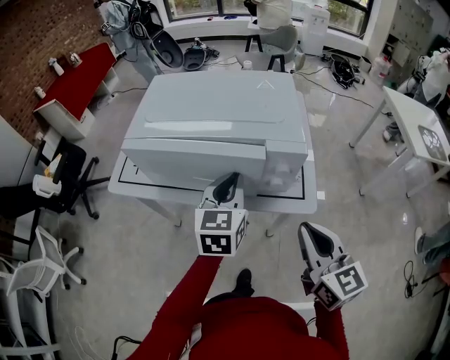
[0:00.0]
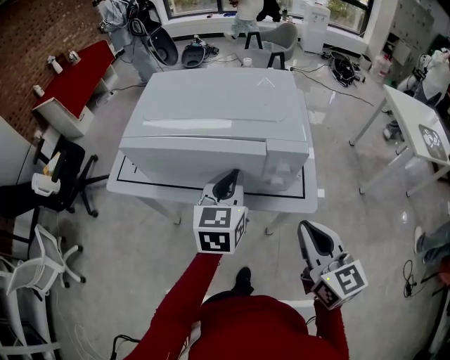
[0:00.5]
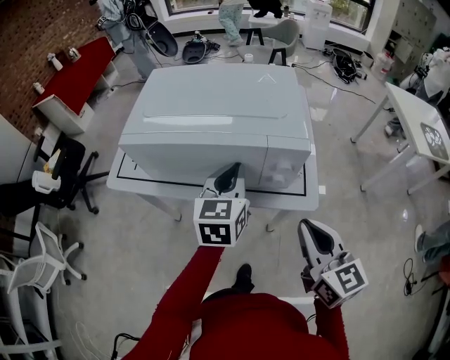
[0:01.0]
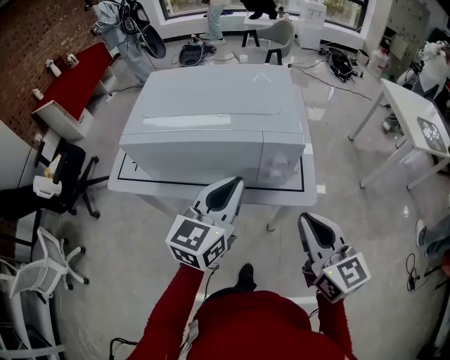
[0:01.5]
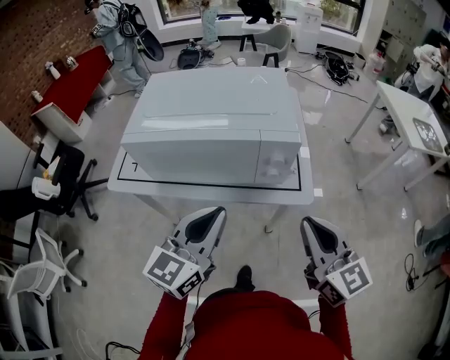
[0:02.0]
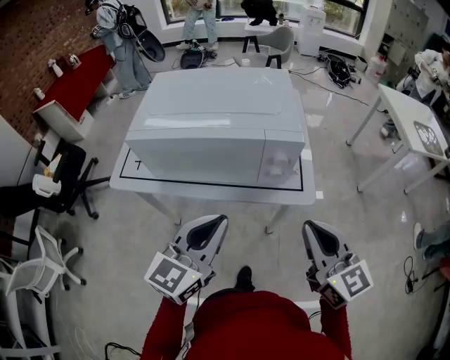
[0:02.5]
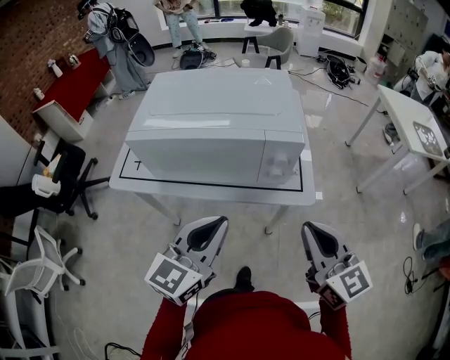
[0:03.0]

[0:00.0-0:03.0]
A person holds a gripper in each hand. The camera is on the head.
0:00.0 to 0:01.5: The left gripper ends up some 5 cm from where it was, and rotates roughly 20 degrees.
0:01.5 to 0:03.0: The left gripper travels backward by some 10 cm.

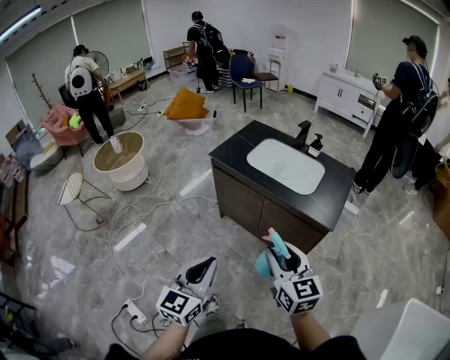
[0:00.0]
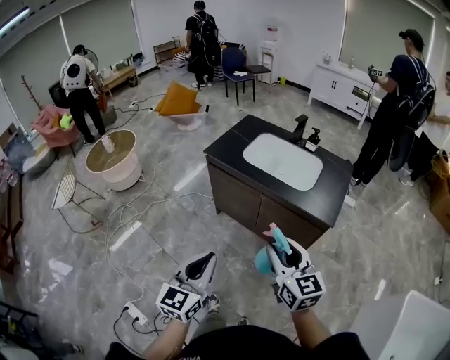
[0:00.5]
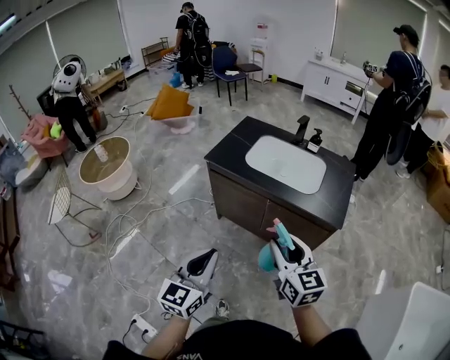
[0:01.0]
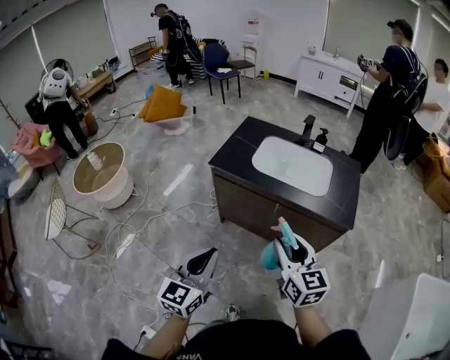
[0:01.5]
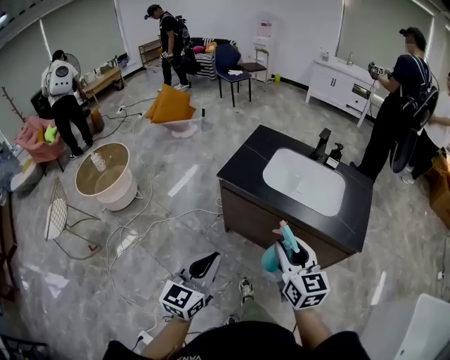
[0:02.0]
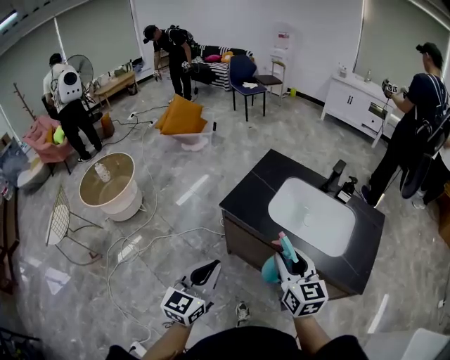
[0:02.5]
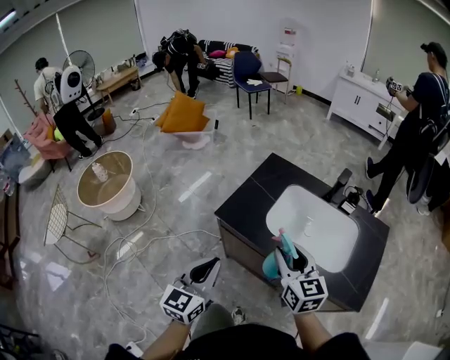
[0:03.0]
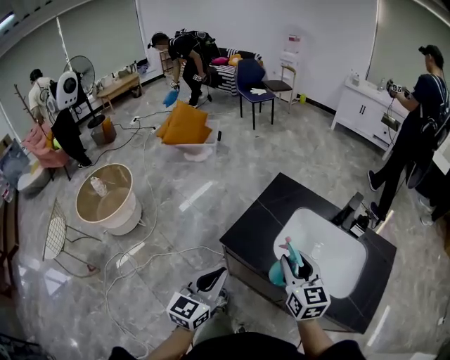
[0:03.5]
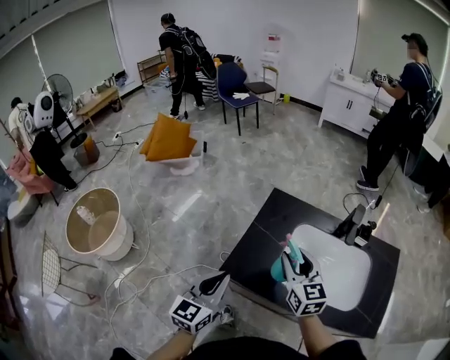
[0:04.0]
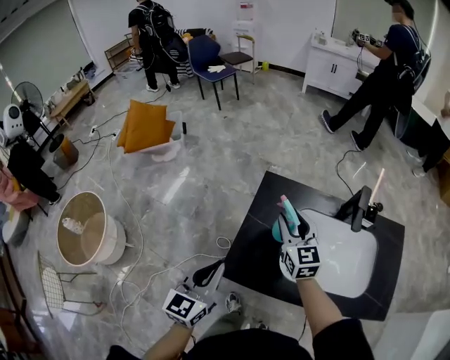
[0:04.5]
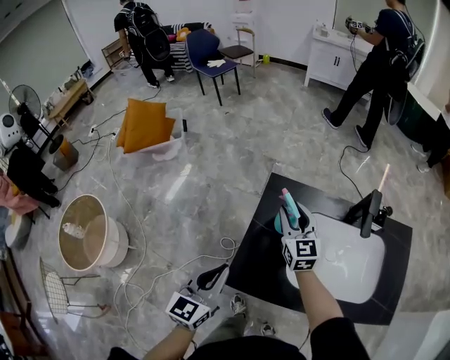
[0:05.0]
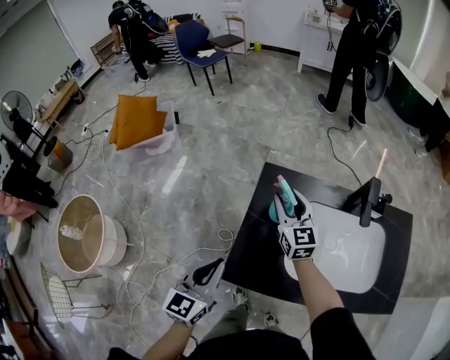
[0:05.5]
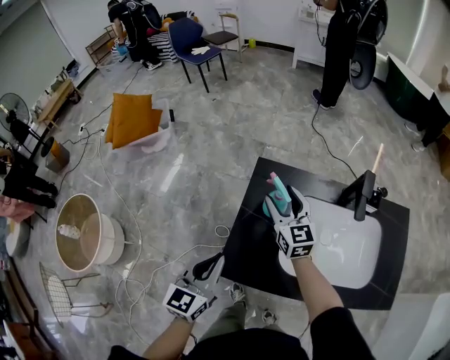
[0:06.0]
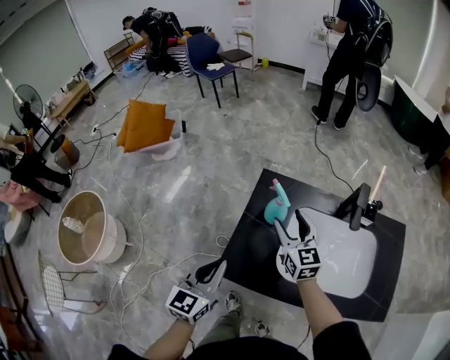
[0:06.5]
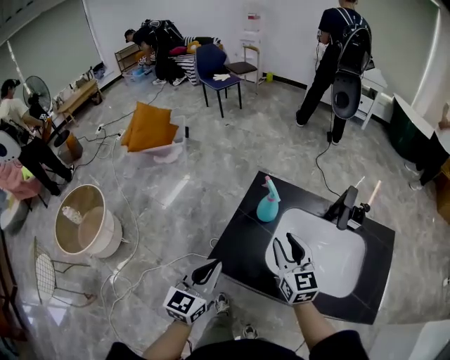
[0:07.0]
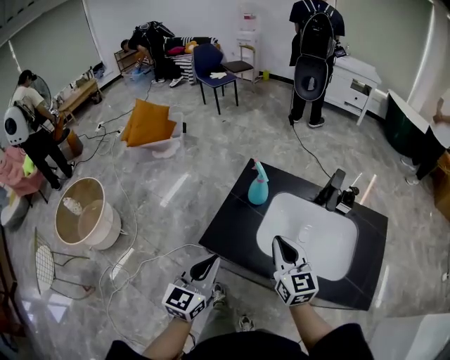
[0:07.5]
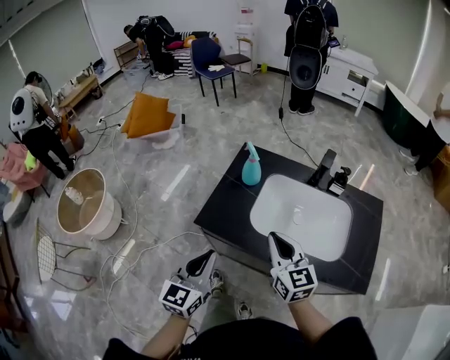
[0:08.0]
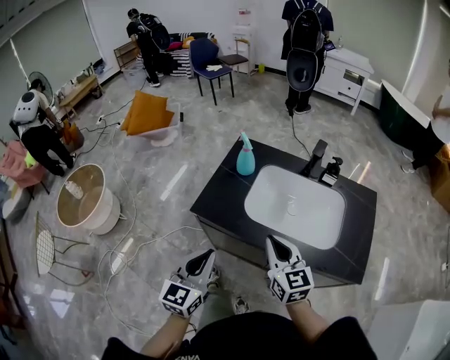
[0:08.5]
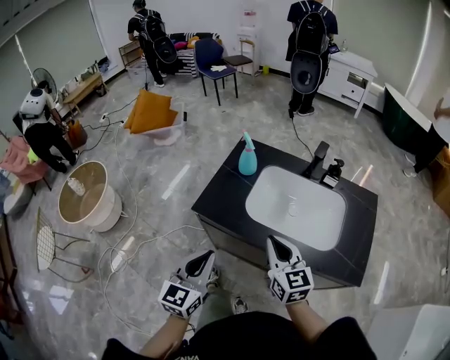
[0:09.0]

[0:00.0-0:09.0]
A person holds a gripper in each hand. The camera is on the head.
0:00.0 to 0:02.0: The two grippers go approximately 25 cm forward and to the left.
0:02.0 to 0:04.5: Both grippers are carried forward, some 50 cm.
0:04.5 to 0:07.0: The right gripper is displaced backward by some 10 cm, and opens and closes again. The left gripper ends up some 5 cm from where it was.
0:07.0 to 0:09.0: The left gripper is displaced backward and to the right by about 20 cm. The right gripper is displaced backward by some 20 cm, and closes its fingers.

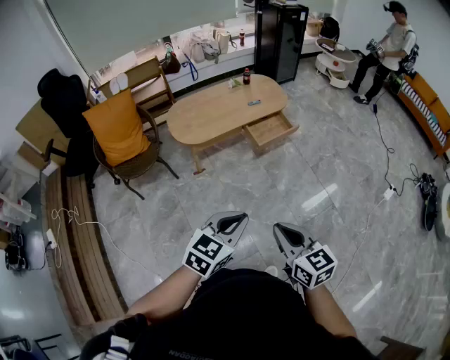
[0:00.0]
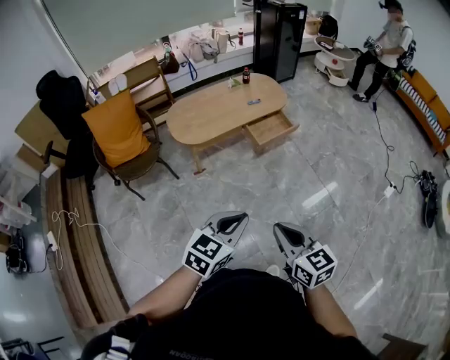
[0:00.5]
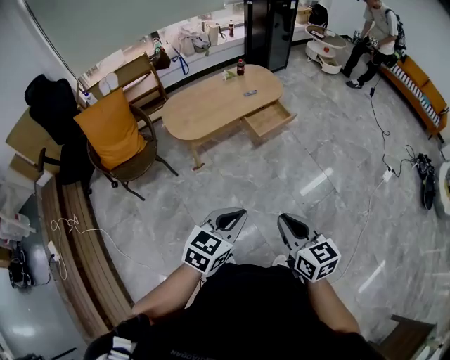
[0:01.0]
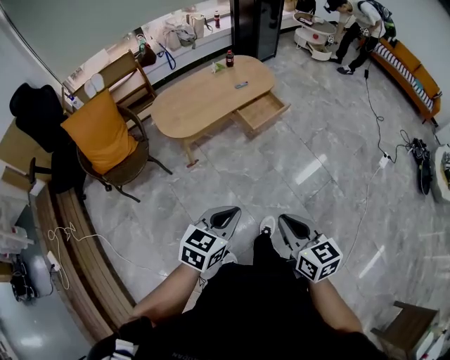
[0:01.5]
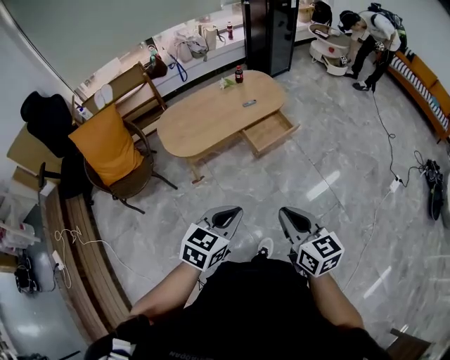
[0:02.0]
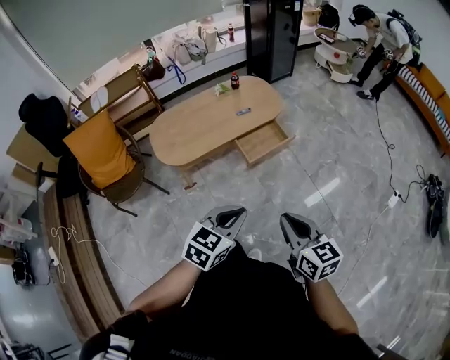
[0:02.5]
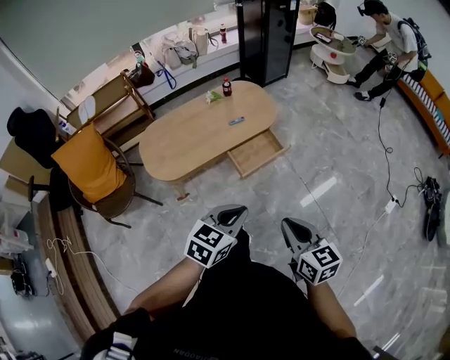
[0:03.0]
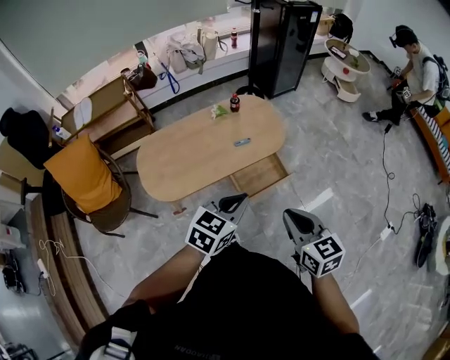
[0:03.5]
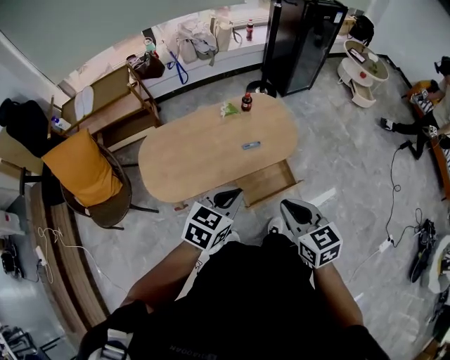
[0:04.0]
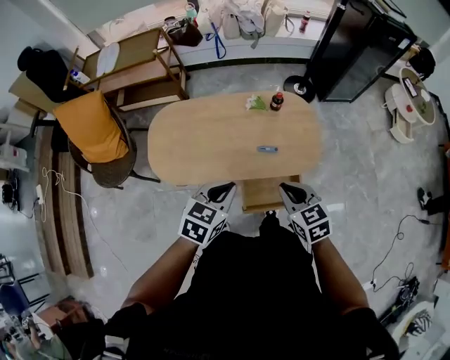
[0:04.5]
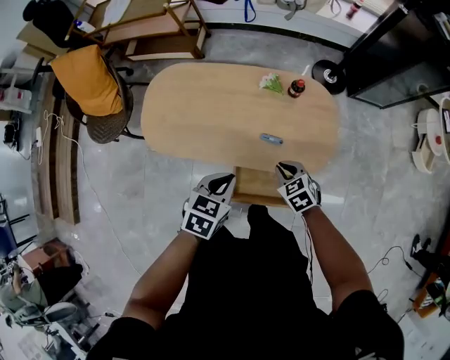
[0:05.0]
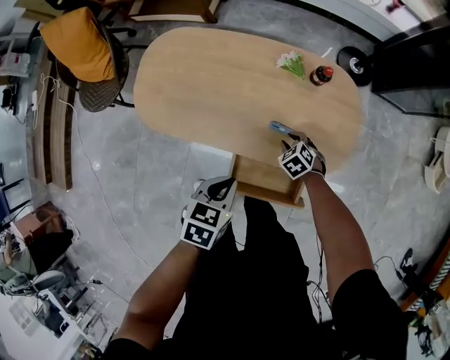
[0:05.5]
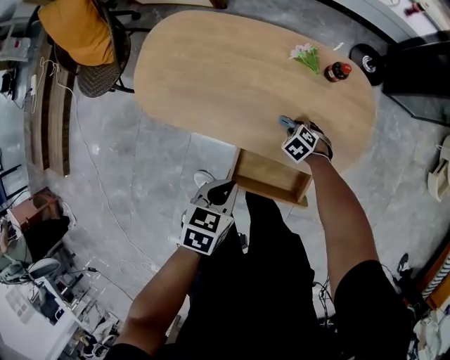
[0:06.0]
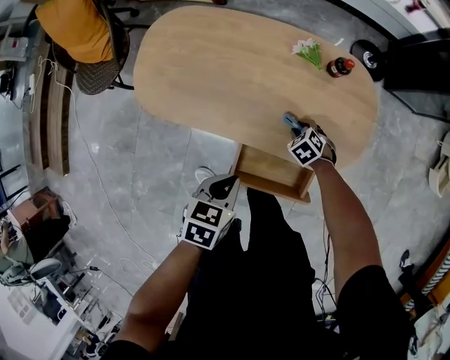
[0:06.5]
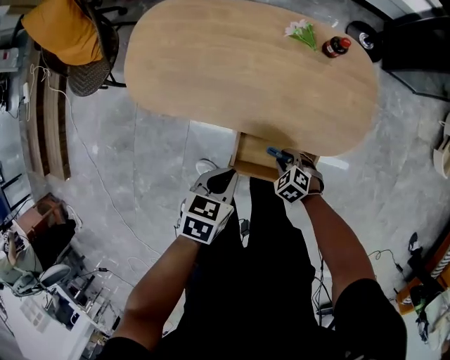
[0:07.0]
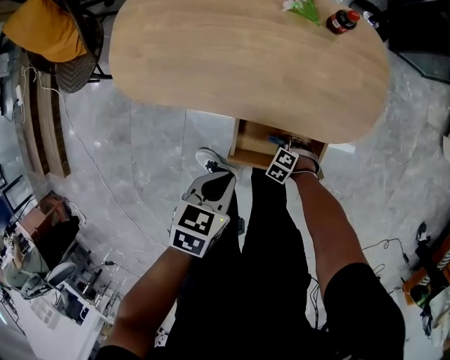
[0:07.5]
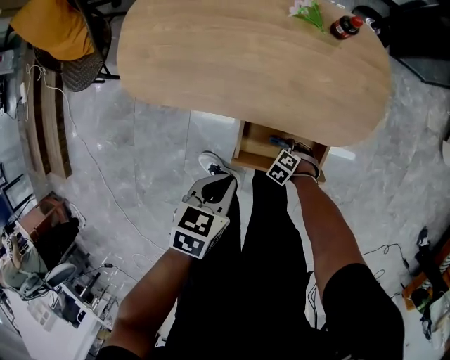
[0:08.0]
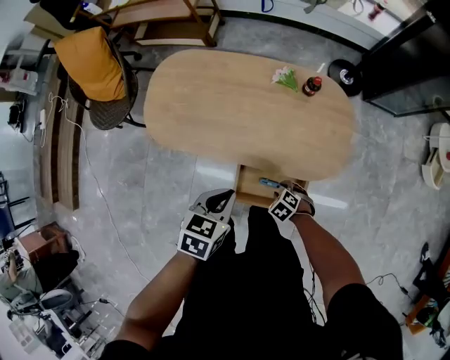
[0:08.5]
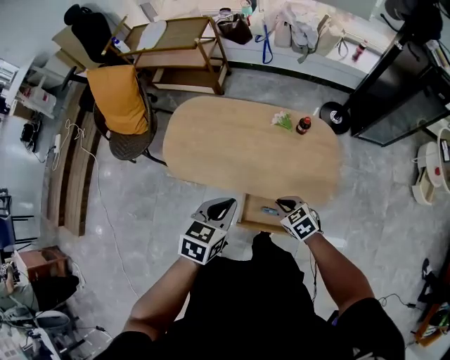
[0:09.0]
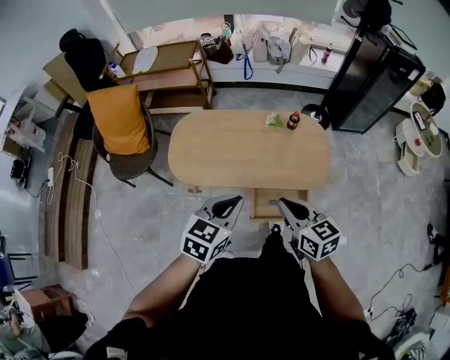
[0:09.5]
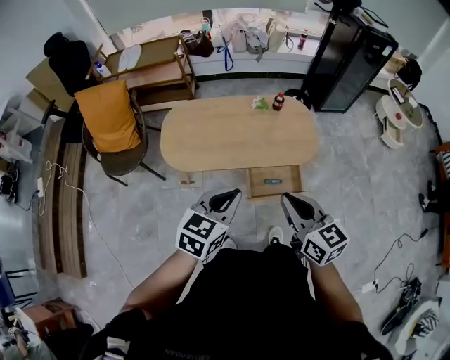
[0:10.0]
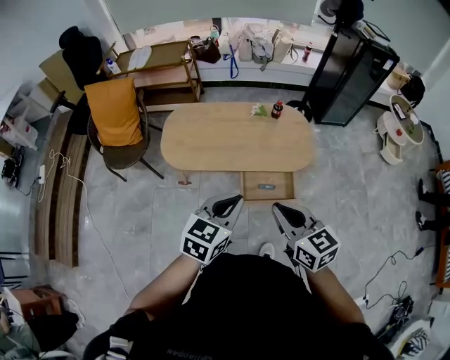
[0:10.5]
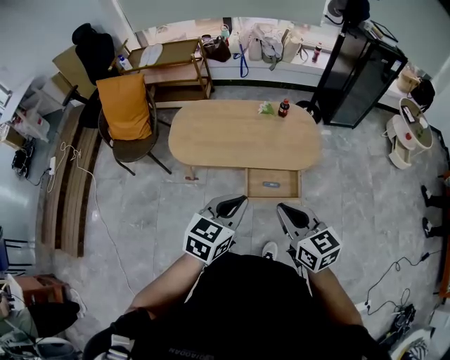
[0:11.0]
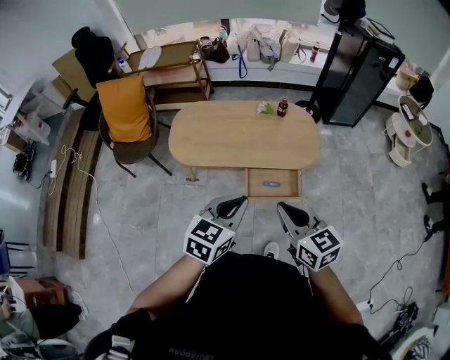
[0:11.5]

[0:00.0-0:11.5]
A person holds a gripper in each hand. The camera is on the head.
0:00.0 to 0:02.0: The two grippers go approximately 15 cm forward.
0:02.0 to 0:04.0: The two grippers travel together, forward, roughly 50 cm.
0:04.0 to 0:06.0: The right gripper shifts about 50 cm downward, points its fingers roughly 50 degrees further downward, and opens its fingers. The left gripper shifts about 25 cm downward, and rotates roughly 60 degrees.
0:06.0 to 0:07.5: The right gripper shifts by about 25 cm. Meanwhile the left gripper shifts by about 5 cm.
0:07.5 to 0:09.5: The right gripper moves upward, approximately 60 cm, tilts its fingers roughly 60 degrees upward, and closes its fingers. The left gripper shifts roughly 30 cm upward, and changes its angle by about 40 degrees.
0:09.5 to 0:11.5: Both grippers move backward, roughly 20 cm.

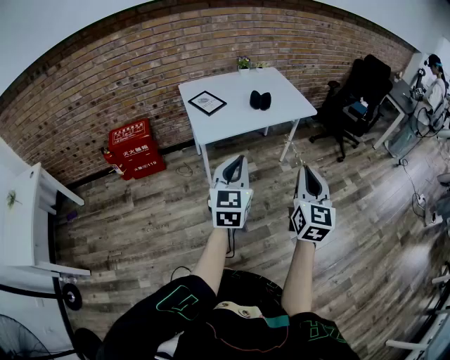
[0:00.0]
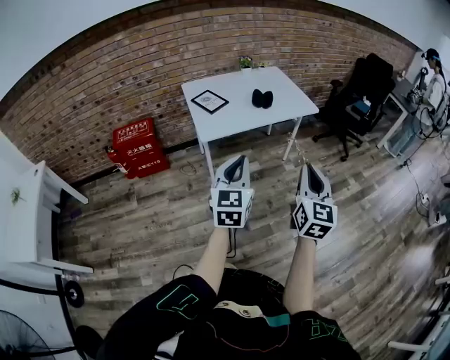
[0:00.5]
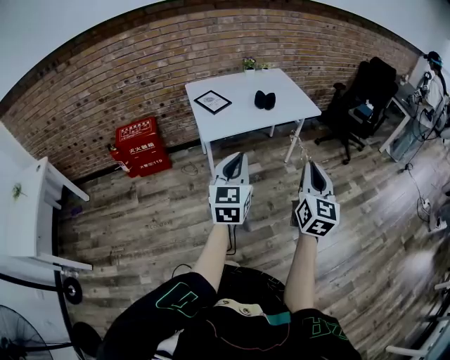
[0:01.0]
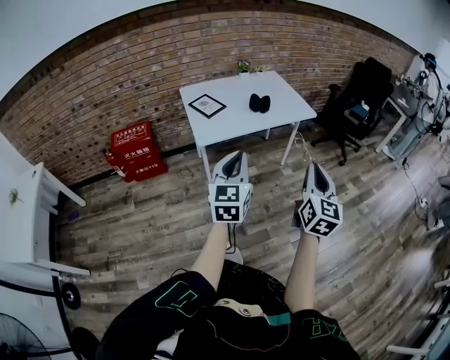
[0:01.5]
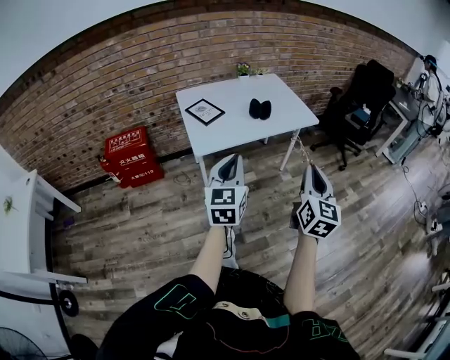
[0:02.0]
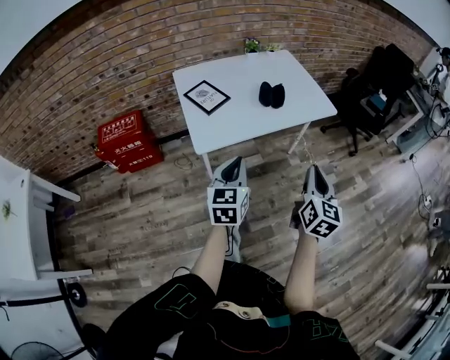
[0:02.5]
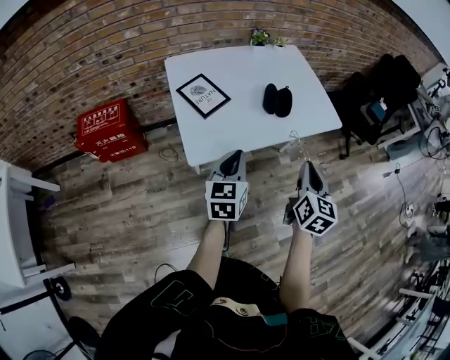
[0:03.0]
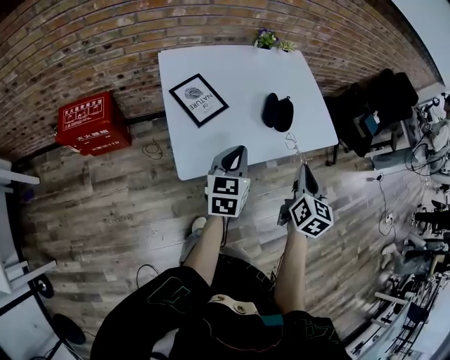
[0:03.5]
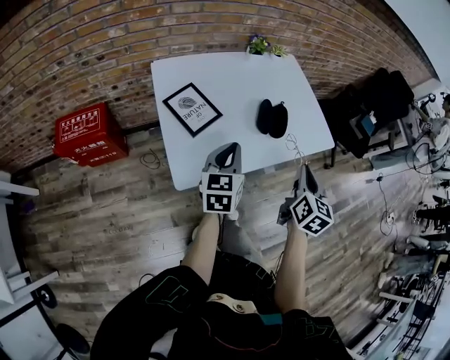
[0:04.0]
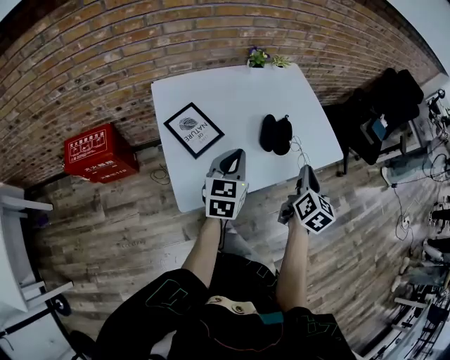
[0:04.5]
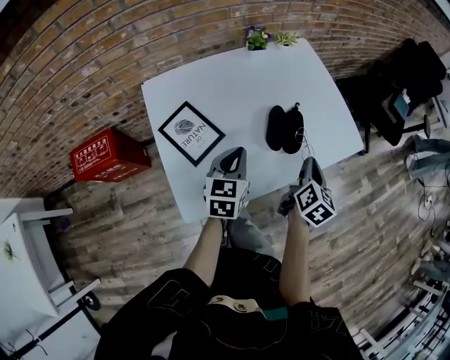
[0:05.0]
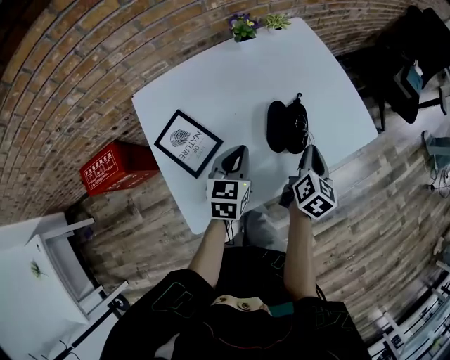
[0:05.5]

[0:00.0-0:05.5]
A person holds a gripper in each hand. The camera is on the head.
0:00.0 to 0:02.0: The two grippers go roughly 10 cm forward.
0:02.0 to 0:03.5: The right gripper heads forward, covering roughly 30 cm, and rotates about 20 degrees; the left gripper moves forward and downward, some 35 cm, and swivels roughly 20 degrees.
0:03.5 to 0:05.5: The grippers both shift forward and downward by some 20 cm. The right gripper swivels some 30 degrees. The left gripper turns by some 20 degrees.
